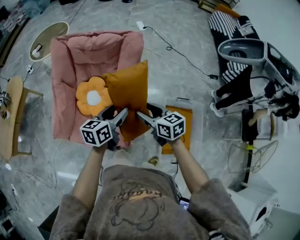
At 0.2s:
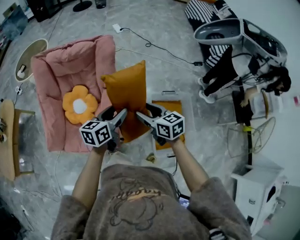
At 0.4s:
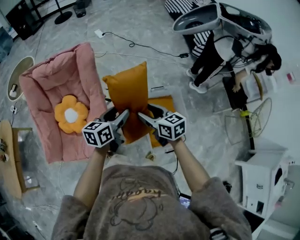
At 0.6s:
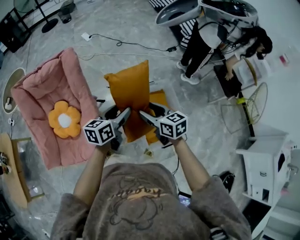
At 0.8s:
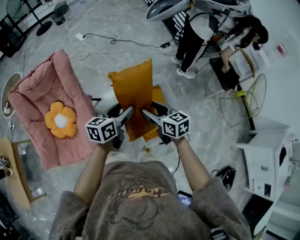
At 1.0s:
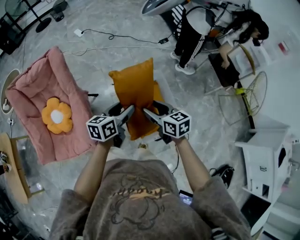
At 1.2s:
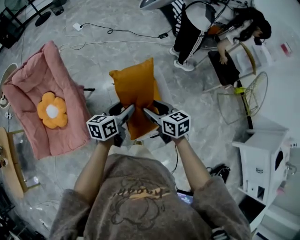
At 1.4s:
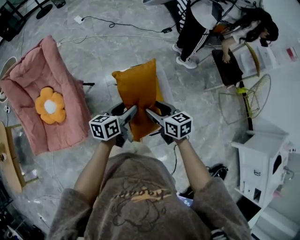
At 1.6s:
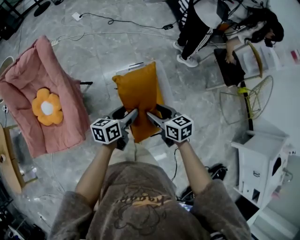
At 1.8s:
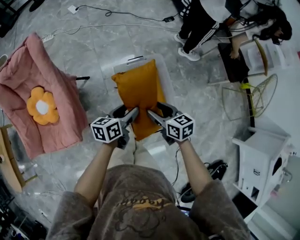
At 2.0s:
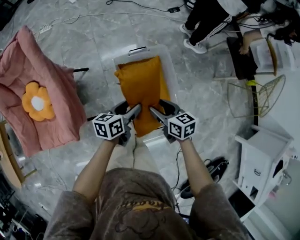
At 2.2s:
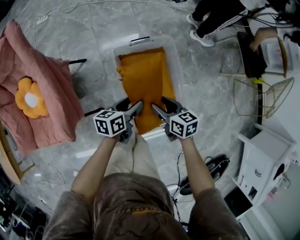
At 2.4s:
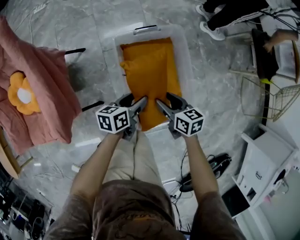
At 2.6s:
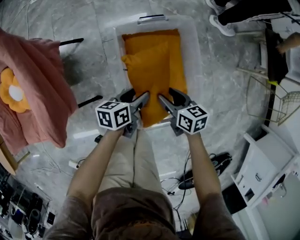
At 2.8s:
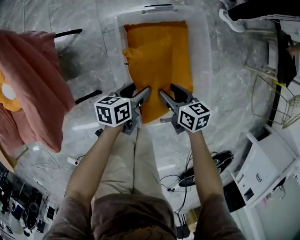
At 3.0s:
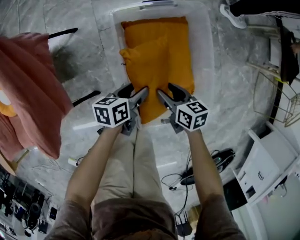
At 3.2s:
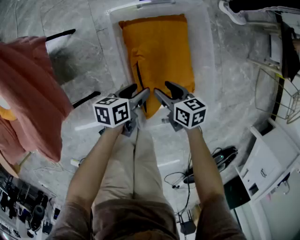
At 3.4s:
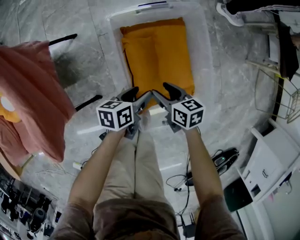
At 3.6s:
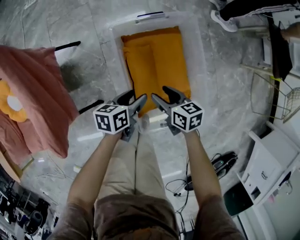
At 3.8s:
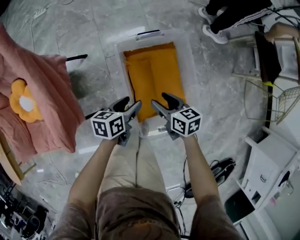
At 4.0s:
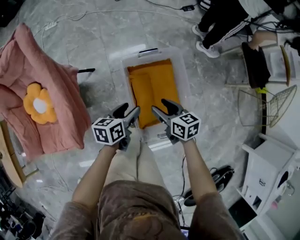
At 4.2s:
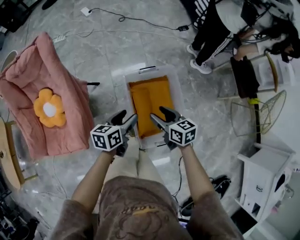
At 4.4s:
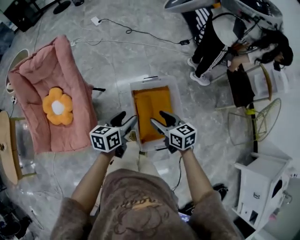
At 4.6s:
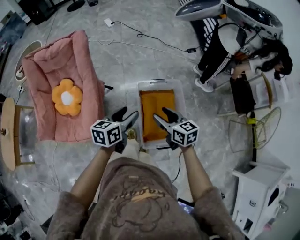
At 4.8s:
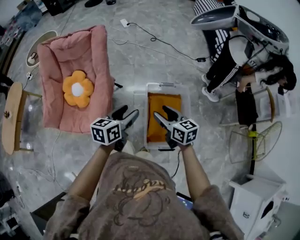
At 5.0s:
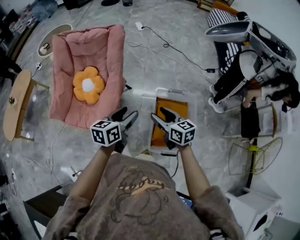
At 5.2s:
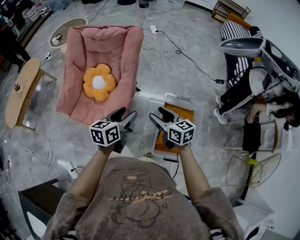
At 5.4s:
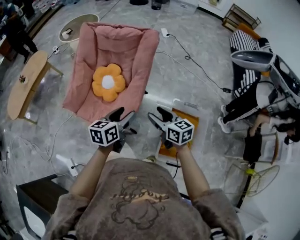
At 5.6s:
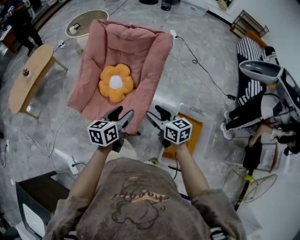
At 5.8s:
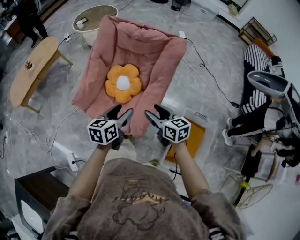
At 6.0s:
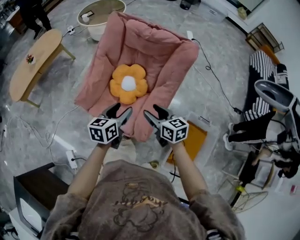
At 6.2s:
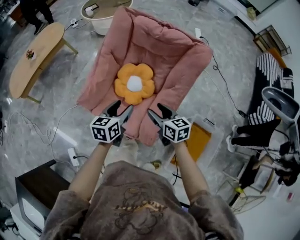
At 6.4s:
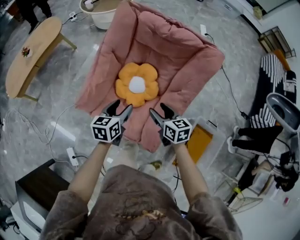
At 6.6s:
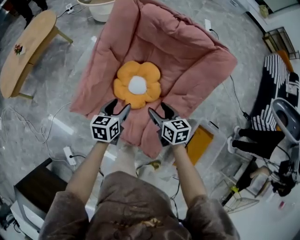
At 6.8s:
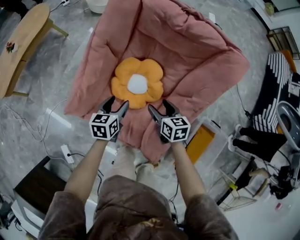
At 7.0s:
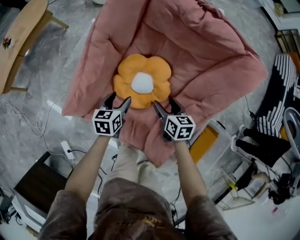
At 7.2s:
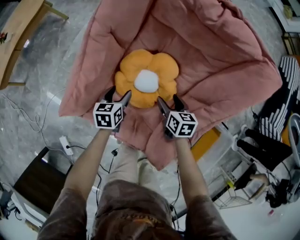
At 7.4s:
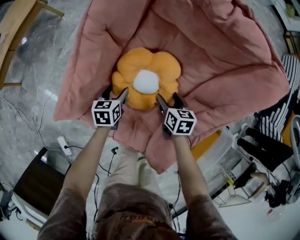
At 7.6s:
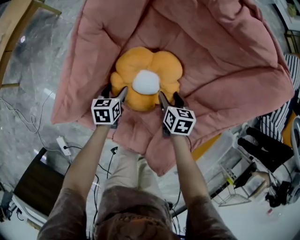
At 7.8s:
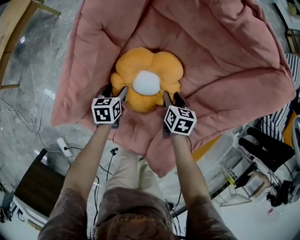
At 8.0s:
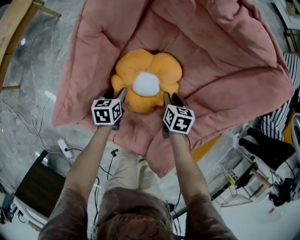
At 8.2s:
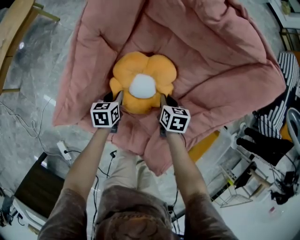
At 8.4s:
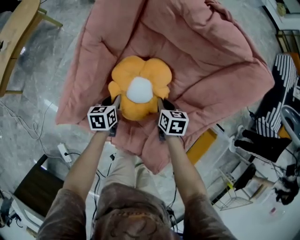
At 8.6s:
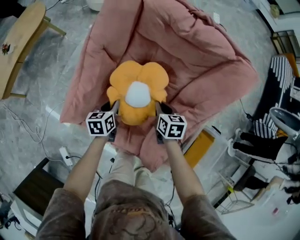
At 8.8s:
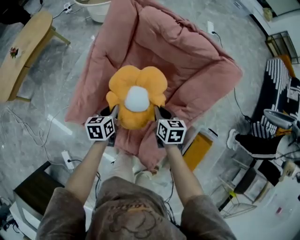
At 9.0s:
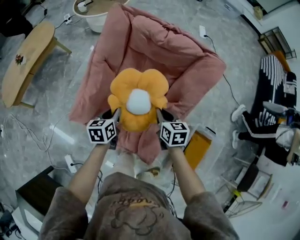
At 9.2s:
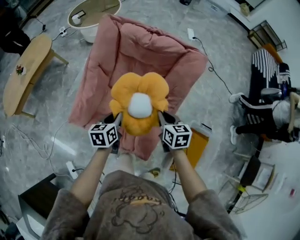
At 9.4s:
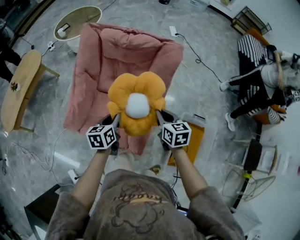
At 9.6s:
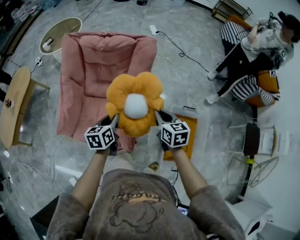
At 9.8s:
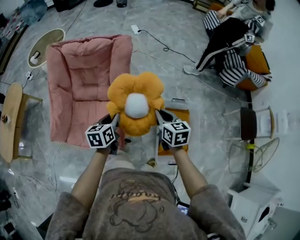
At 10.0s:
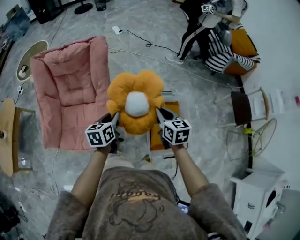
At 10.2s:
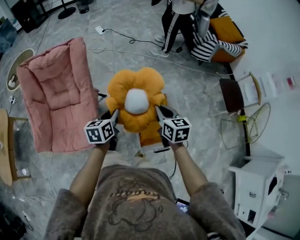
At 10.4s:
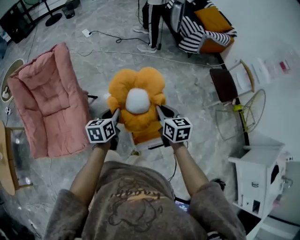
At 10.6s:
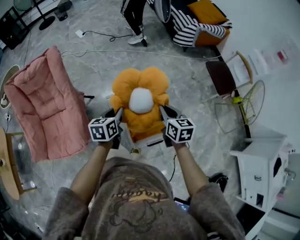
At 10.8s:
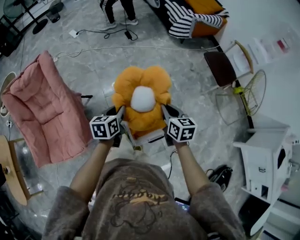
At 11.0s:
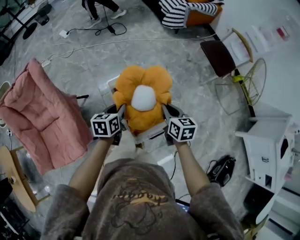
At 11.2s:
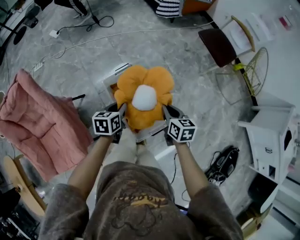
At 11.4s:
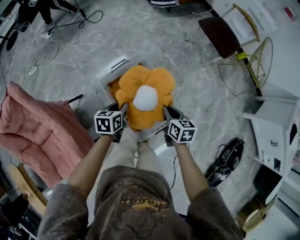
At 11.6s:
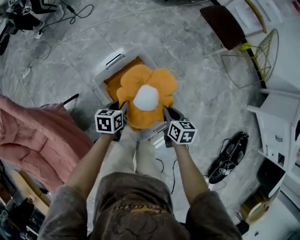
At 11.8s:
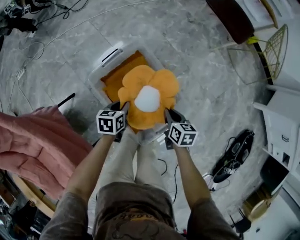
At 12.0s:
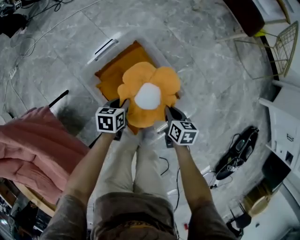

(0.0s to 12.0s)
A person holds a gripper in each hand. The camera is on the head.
0.0s - 1.6s: The two grippers travel together, about 50 cm. The left gripper rotates approximately 30 degrees. Meanwhile the right gripper turns by approximately 30 degrees.
1.6s - 3.0s: Both grippers move downward, some 50 cm. The left gripper changes its angle by approximately 20 degrees.
3.0s - 4.4s: The two grippers go some 50 cm upward. The left gripper turns by about 30 degrees; the right gripper rotates about 20 degrees.
4.4s - 6.0s: Both grippers are carried approximately 60 cm. The right gripper rotates approximately 40 degrees; the left gripper changes its angle by approximately 40 degrees.
6.0s - 7.6s: The grippers both shift downward and forward by some 50 cm. The left gripper turns by approximately 30 degrees. Meanwhile the right gripper turns by some 30 degrees.
7.6s - 9.0s: The two grippers go approximately 30 cm upward. The left gripper closes its fingers, while the right gripper closes its fingers.
9.0s - 10.4s: The two grippers travel together, approximately 70 cm. The left gripper rotates about 40 degrees. The right gripper rotates some 40 degrees.
10.4s - 12.0s: The two grippers go about 50 cm downward. The right gripper swivels some 40 degrees, while the left gripper swivels roughly 40 degrees.

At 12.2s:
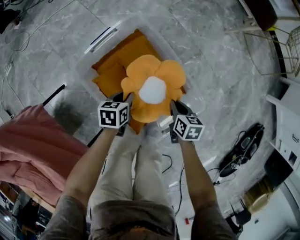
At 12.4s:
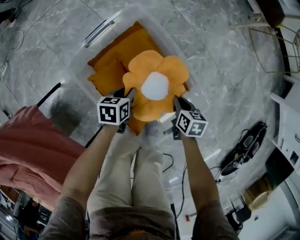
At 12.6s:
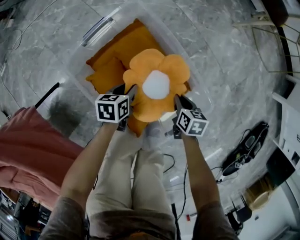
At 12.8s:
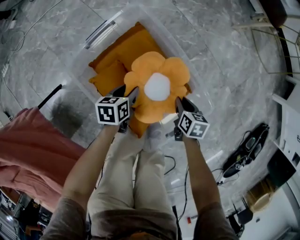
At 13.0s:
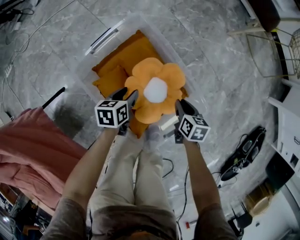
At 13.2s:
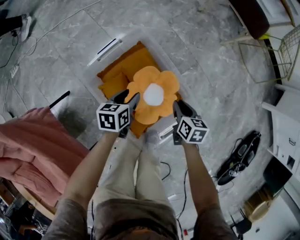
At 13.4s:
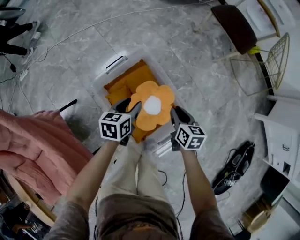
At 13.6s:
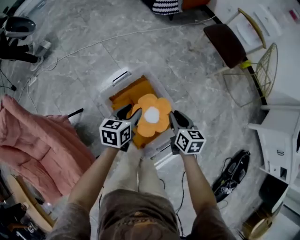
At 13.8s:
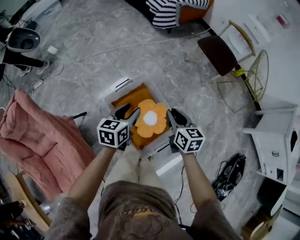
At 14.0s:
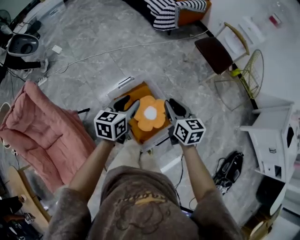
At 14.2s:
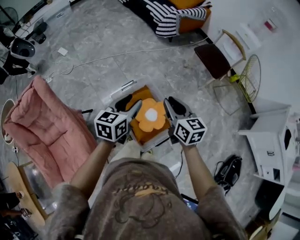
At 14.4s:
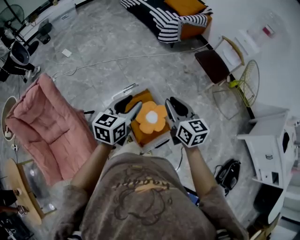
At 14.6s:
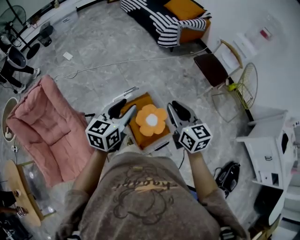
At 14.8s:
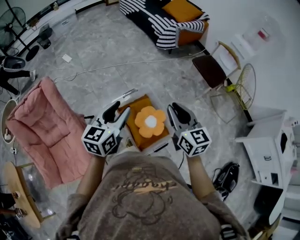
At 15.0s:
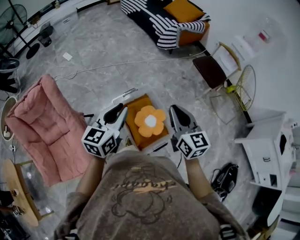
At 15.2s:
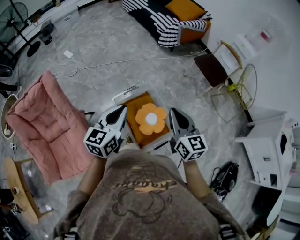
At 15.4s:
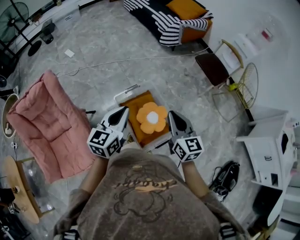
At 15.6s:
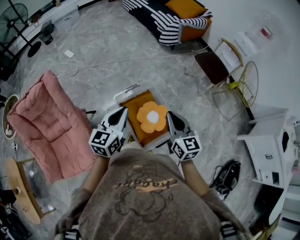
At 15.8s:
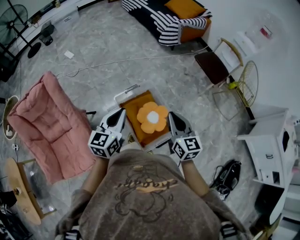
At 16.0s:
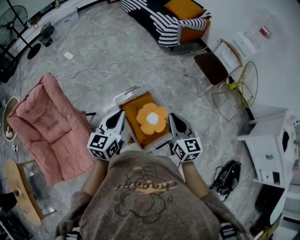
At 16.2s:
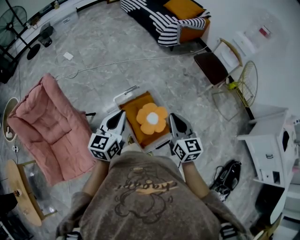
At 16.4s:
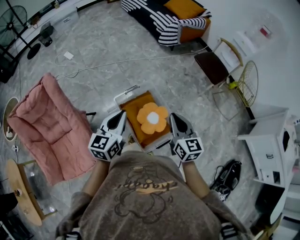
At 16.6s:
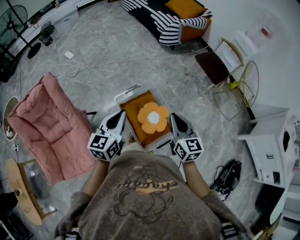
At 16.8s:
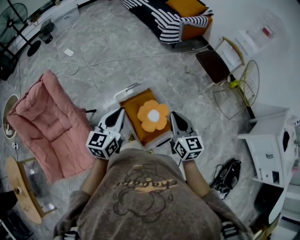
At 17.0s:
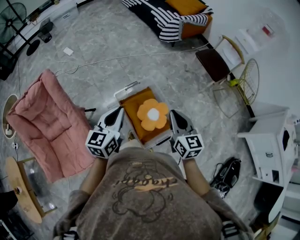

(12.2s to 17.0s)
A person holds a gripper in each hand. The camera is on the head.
12.2s - 13.8s: The two grippers go approximately 50 cm upward. The left gripper rotates roughly 30 degrees. The right gripper swivels some 30 degrees.
13.8s - 15.4s: Both grippers travel together upward and backward, approximately 30 cm. The left gripper turns by some 20 degrees, and closes its fingers; the right gripper swivels some 20 degrees.
15.4s - 17.0s: The grippers stay close to where they were, moving slightly.

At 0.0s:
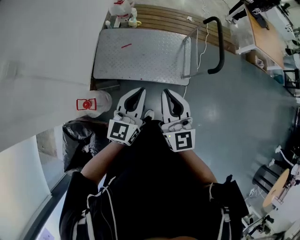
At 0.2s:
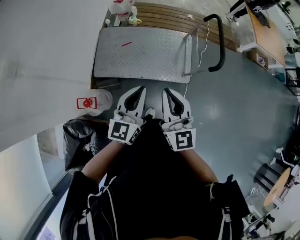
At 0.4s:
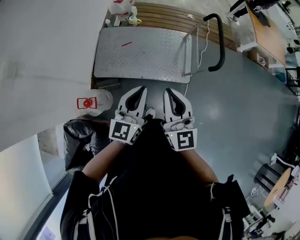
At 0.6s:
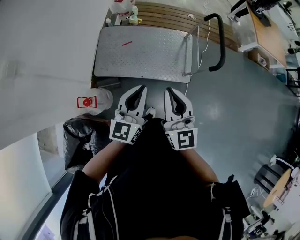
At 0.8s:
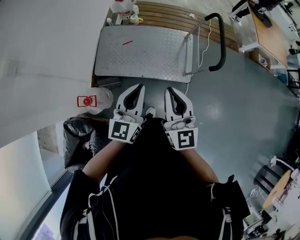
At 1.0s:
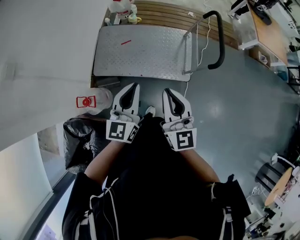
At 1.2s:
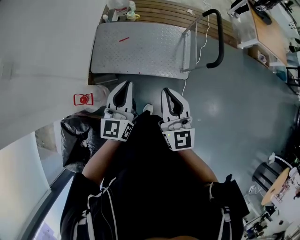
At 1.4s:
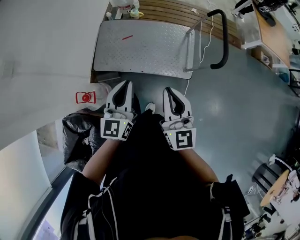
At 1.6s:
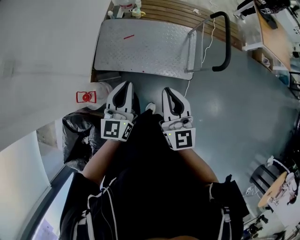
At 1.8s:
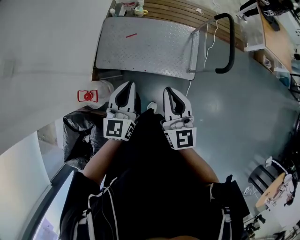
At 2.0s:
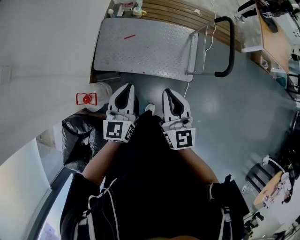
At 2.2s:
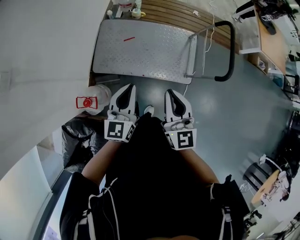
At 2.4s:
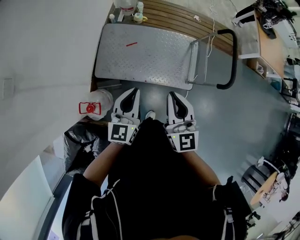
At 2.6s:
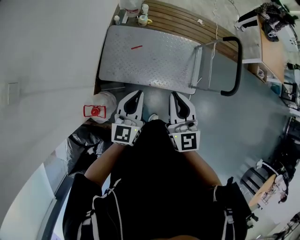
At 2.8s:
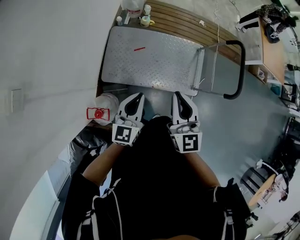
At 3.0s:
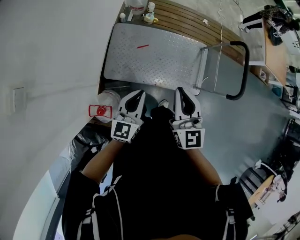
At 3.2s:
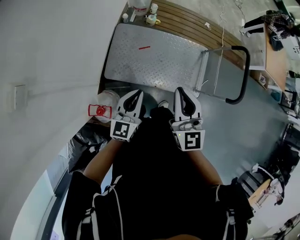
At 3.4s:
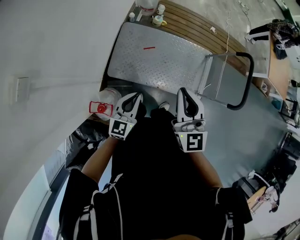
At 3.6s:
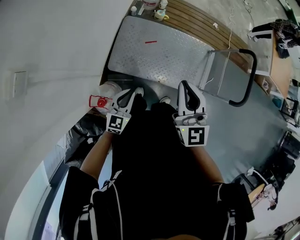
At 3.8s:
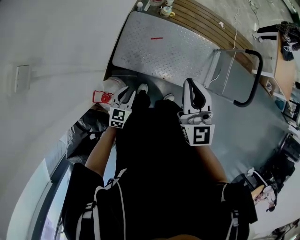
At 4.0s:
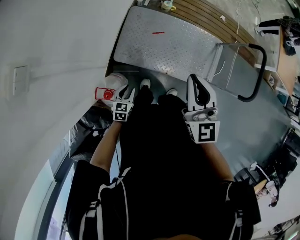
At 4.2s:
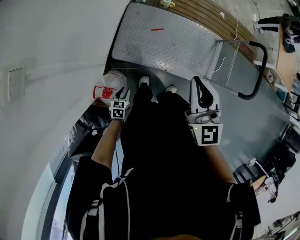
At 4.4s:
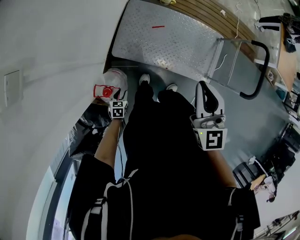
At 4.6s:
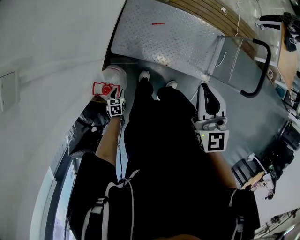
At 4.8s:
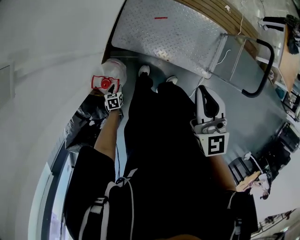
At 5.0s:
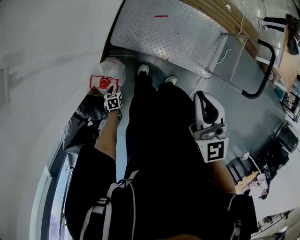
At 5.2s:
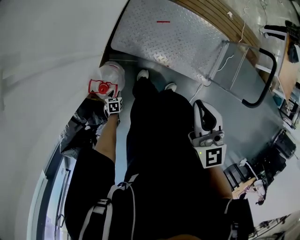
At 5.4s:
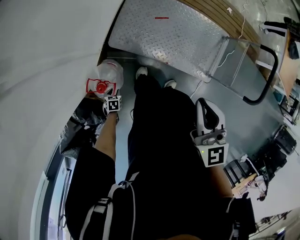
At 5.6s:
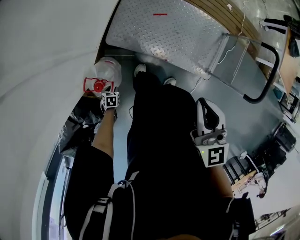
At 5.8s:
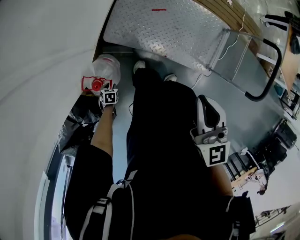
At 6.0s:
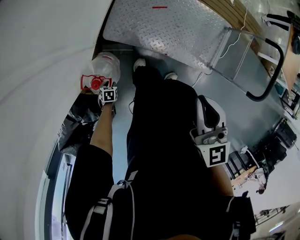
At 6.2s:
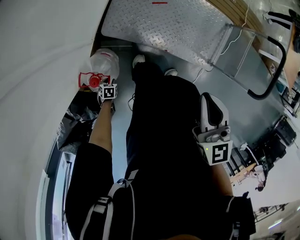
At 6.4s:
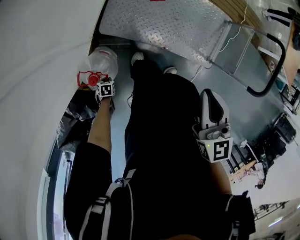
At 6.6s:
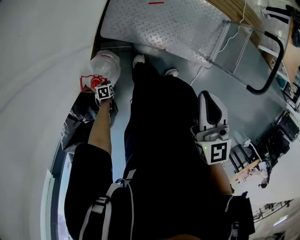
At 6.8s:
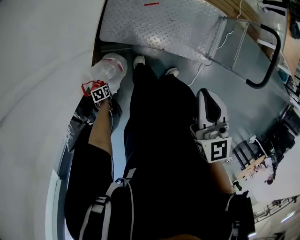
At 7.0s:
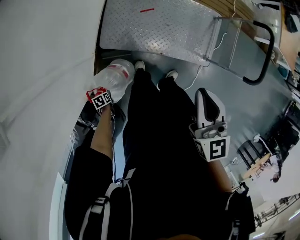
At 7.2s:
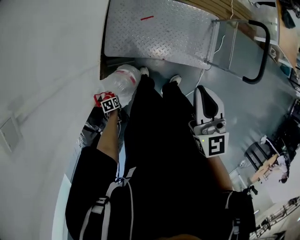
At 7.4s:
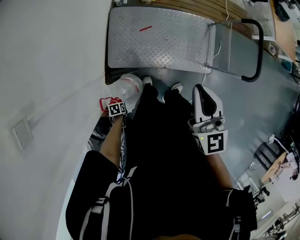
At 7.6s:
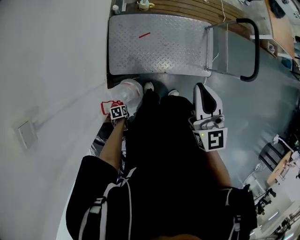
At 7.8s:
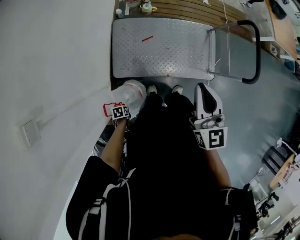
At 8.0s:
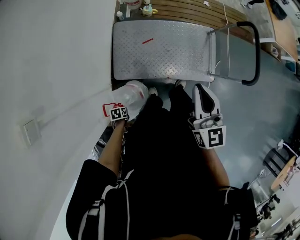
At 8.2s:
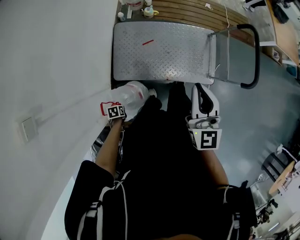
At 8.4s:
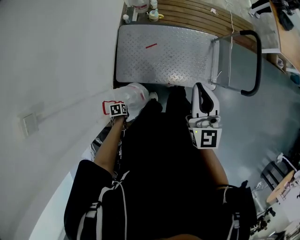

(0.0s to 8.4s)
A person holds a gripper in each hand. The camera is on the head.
0.0s - 1.4s: The grippers move only a little.
1.4s - 2.8s: The left gripper moves to the left, forward and downward, about 20 cm. Meanwhile the right gripper shifts approximately 25 cm forward and to the left.
2.8s - 4.2s: The left gripper shifts about 40 cm downward and to the left, angles its fingers downward, by approximately 40 degrees, and opens up. The right gripper goes about 5 cm to the left.
4.2s - 5.6s: The left gripper travels downward by roughly 20 cm, and swivels roughly 30 degrees. Meanwhile the right gripper is displaced downward by about 5 cm.
5.6s - 7.0s: The left gripper ends up about 5 cm from where it was, and changes its angle by roughly 20 degrees. The right gripper shifts by roughly 5 cm.
7.0s - 8.4s: The right gripper shifts by roughly 10 cm. Meanwhile the left gripper shifts by approximately 20 cm.
